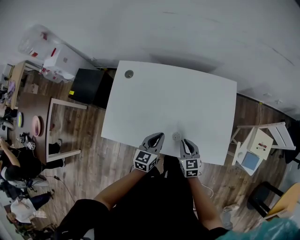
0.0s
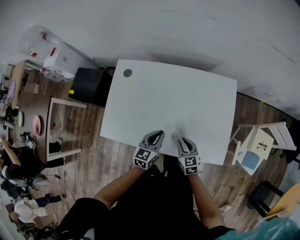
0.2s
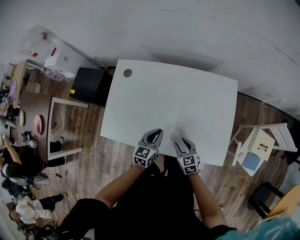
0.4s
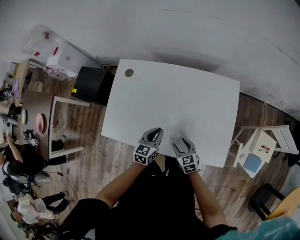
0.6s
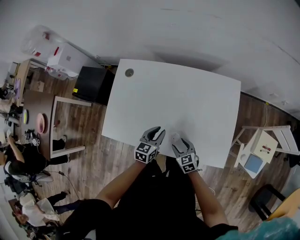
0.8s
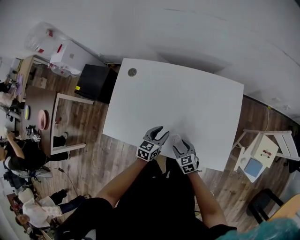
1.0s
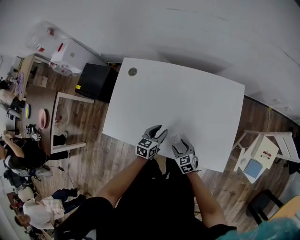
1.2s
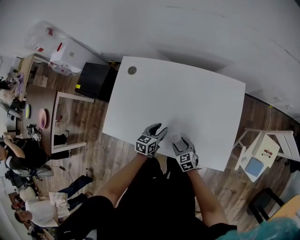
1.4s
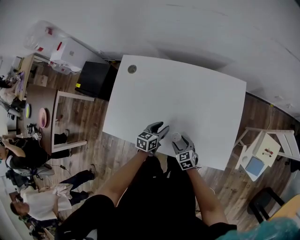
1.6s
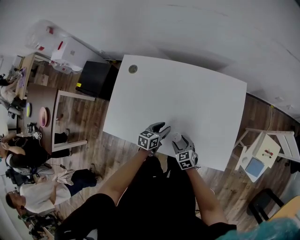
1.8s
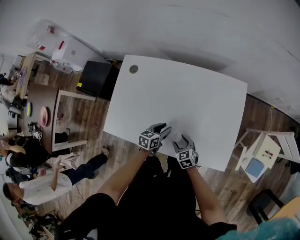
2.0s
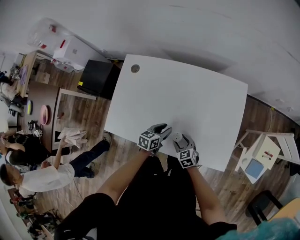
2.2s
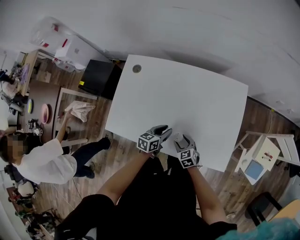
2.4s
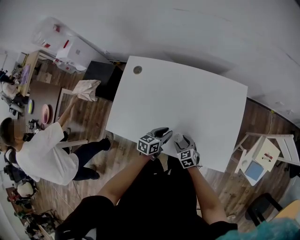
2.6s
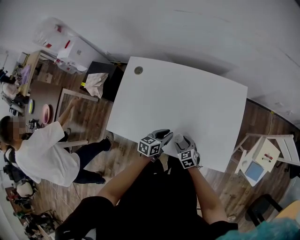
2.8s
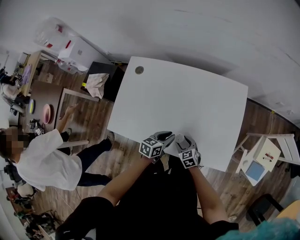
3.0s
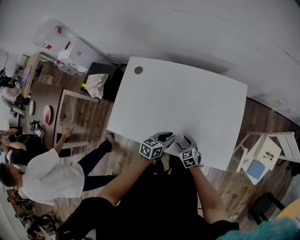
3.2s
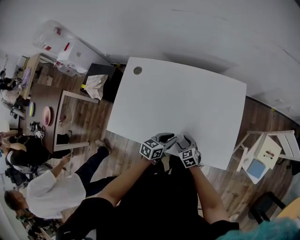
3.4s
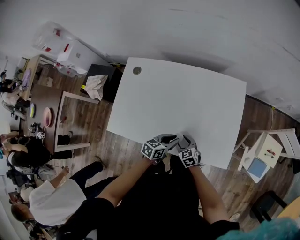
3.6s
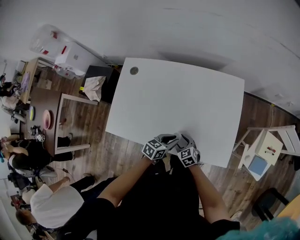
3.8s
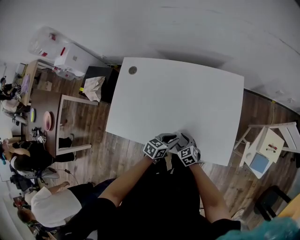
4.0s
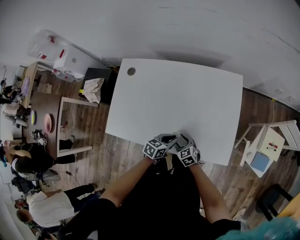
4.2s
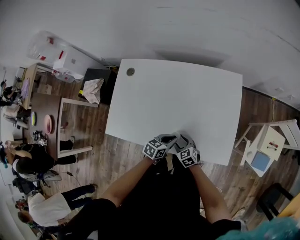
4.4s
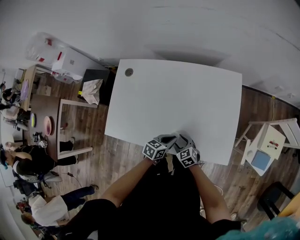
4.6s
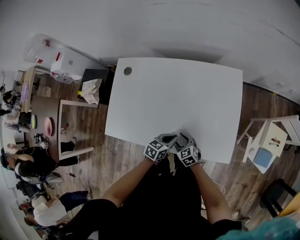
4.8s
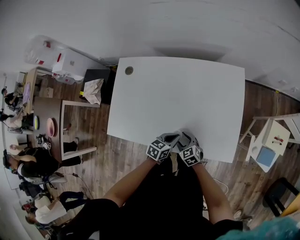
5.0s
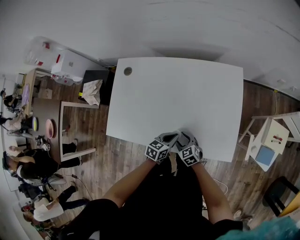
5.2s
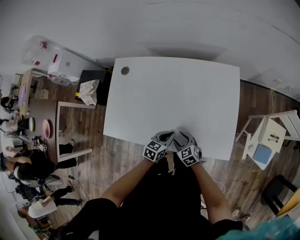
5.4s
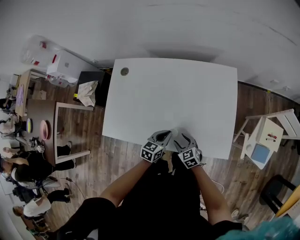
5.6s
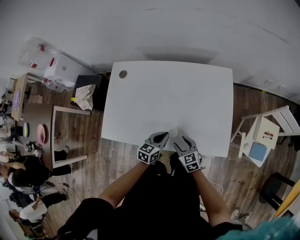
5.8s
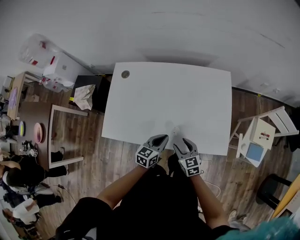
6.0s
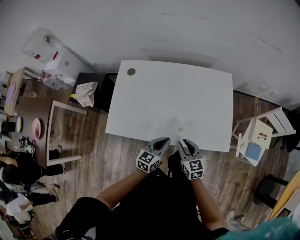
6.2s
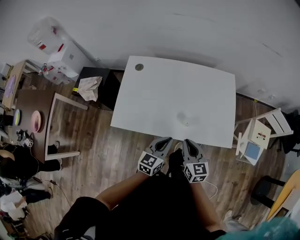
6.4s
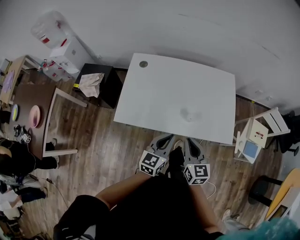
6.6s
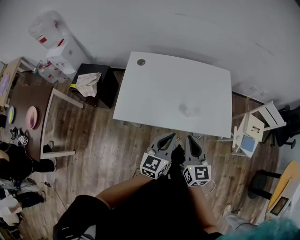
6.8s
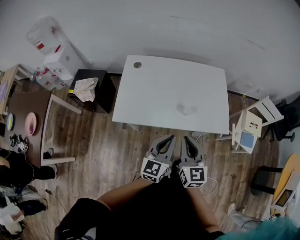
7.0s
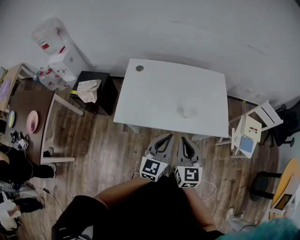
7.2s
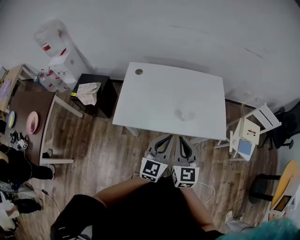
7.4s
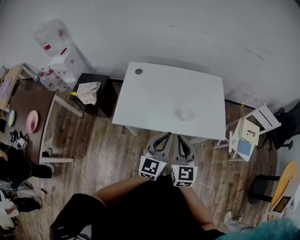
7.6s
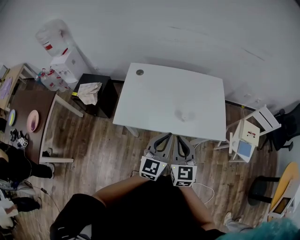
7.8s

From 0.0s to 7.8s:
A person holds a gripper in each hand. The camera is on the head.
From 0.0s to 1.6s: The two grippers go about 10 cm downward. The right gripper swivels roughly 20 degrees, and opens; the left gripper opens its fingers.
From 1.6s to 3.2s: The left gripper heads backward, covering some 5 cm.
From 3.2s to 4.6s: The left gripper moves about 5 cm.
From 4.6s to 6.2s: The left gripper is displaced upward, to the left and backward by approximately 15 cm, and swivels approximately 20 degrees, while the right gripper heads upward, covering about 15 cm, rotates roughly 30 degrees, and closes.
From 6.2s to 7.8s: The right gripper travels upward, backward and to the left by roughly 25 cm, turns by approximately 20 degrees, and closes up. Meanwhile the left gripper shifts some 25 cm upward and backward, and changes its angle by approximately 30 degrees.

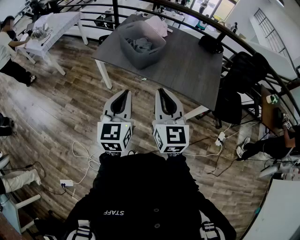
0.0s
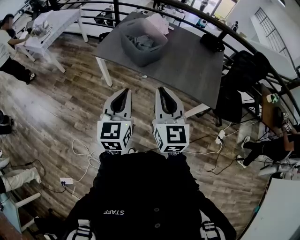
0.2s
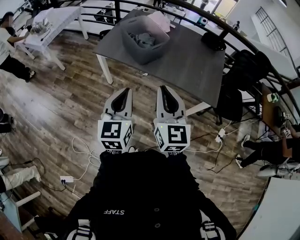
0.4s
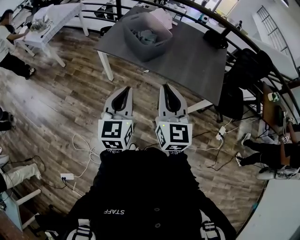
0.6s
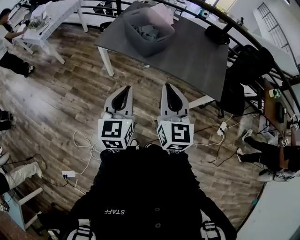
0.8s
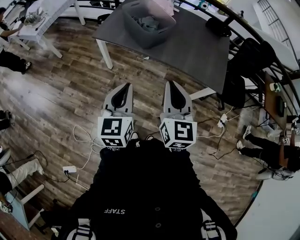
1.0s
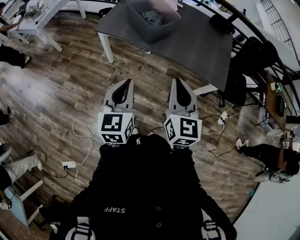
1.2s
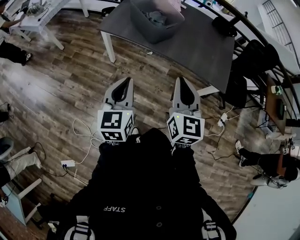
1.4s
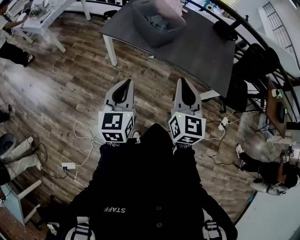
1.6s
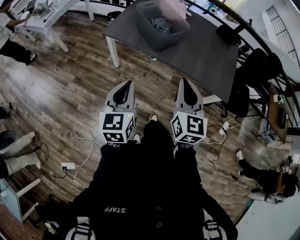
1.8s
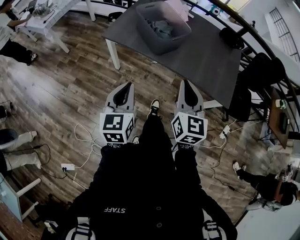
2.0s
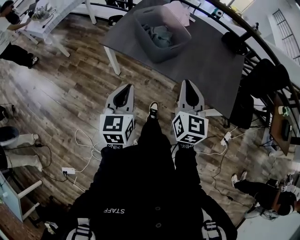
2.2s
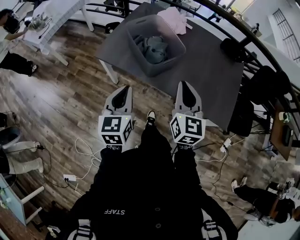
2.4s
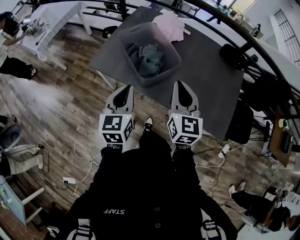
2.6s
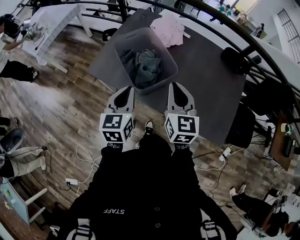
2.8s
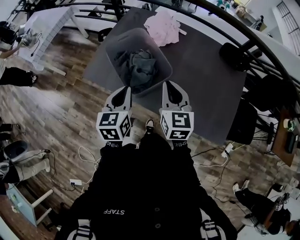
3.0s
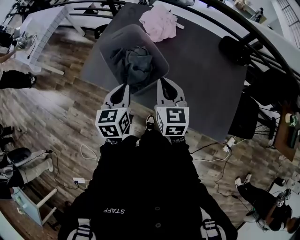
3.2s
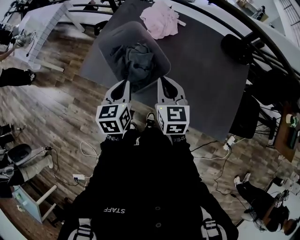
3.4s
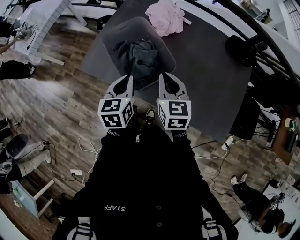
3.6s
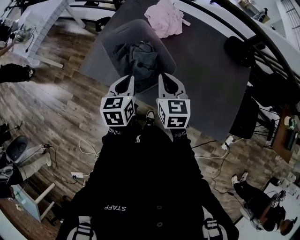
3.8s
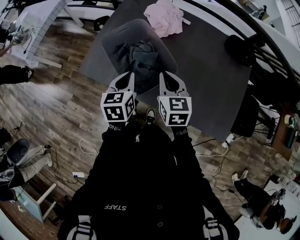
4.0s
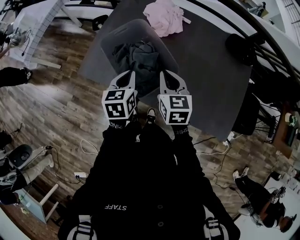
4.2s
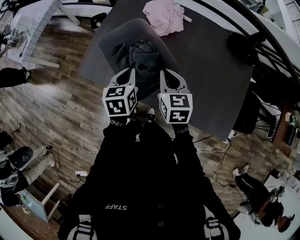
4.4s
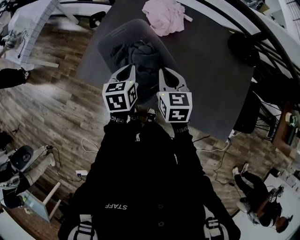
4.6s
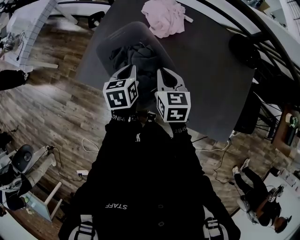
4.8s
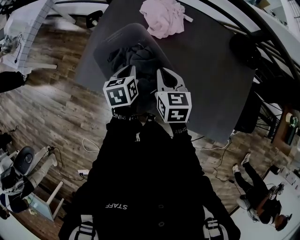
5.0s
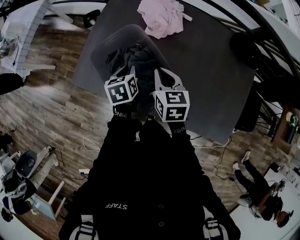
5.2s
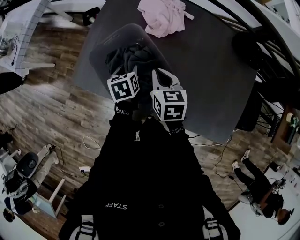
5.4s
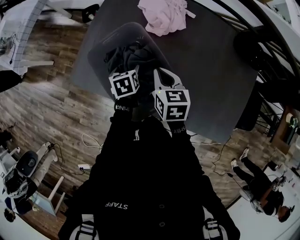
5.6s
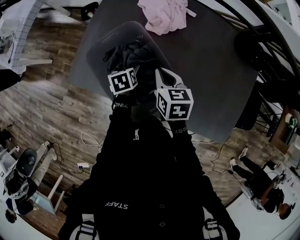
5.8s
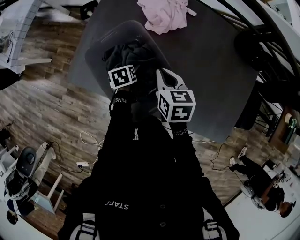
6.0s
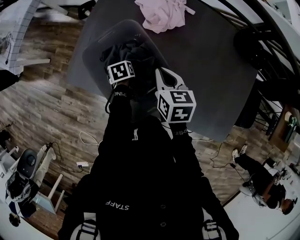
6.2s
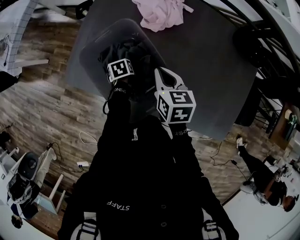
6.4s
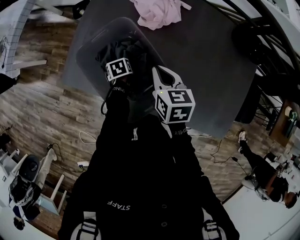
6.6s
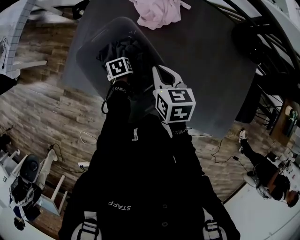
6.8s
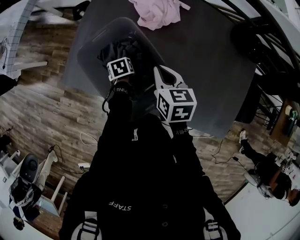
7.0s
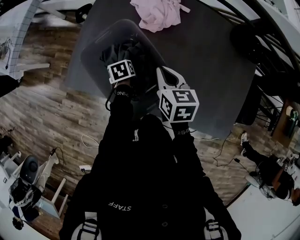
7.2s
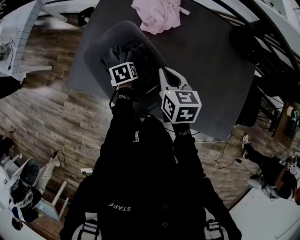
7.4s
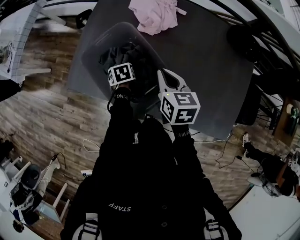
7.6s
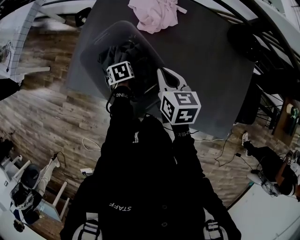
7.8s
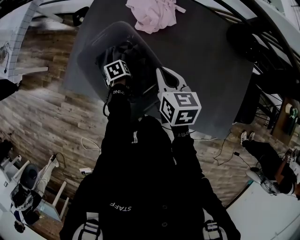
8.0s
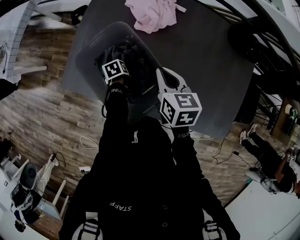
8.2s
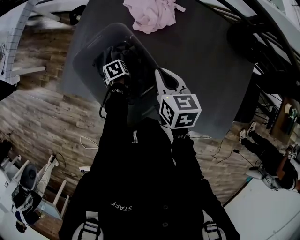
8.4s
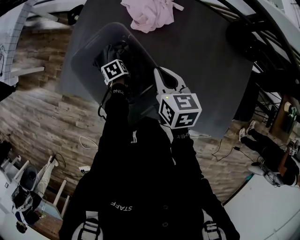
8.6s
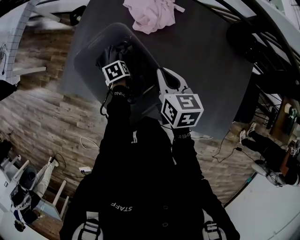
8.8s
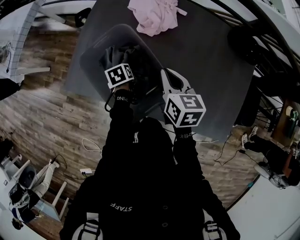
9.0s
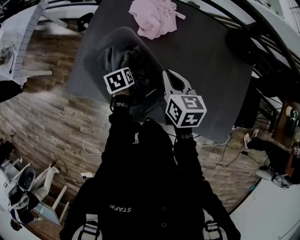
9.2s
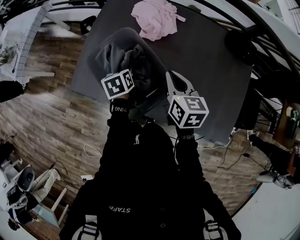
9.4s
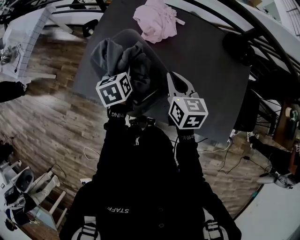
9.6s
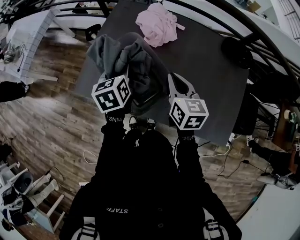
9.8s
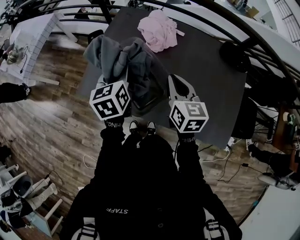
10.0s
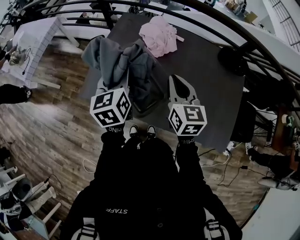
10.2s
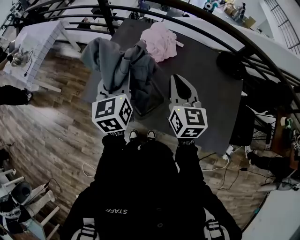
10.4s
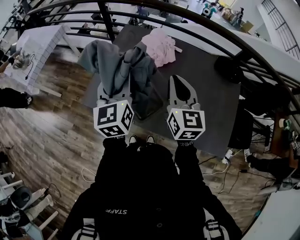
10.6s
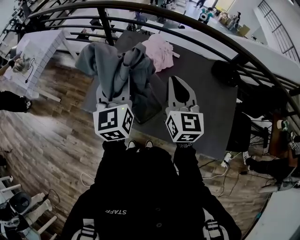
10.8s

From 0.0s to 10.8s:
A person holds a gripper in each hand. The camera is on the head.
From 0.0s to 1.6s: The left gripper is displaced to the left and downward by about 10 cm. Meanwhile the right gripper shifts approximately 5 cm downward.
From 1.6s to 3.0s: Both grippers are carried forward, roughly 40 cm.
From 3.0s to 4.6s: The two grippers go about 15 cm forward and downward.
From 4.6s to 6.2s: The right gripper is displaced forward and downward by roughly 10 cm. The left gripper heads downward, covering approximately 25 cm, angles its fingers downward, by some 30 degrees, and opens.
From 6.2s to 7.8s: The left gripper closes, then opens again.
From 7.8s to 9.2s: The left gripper travels upward by roughly 5 cm, and closes up.
From 9.2s to 10.8s: The right gripper heads upward, covering approximately 20 cm, and swivels some 40 degrees, while the left gripper travels upward by roughly 40 cm, and angles its fingers upward, by about 60 degrees.

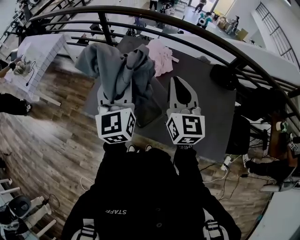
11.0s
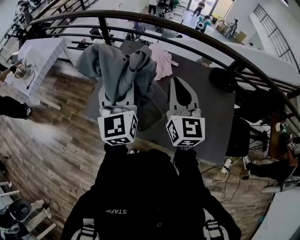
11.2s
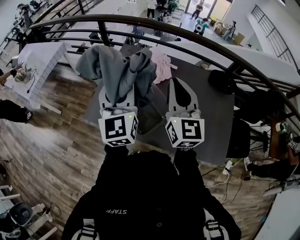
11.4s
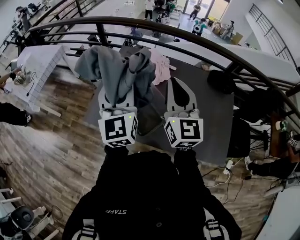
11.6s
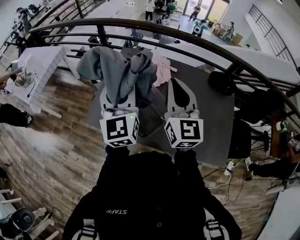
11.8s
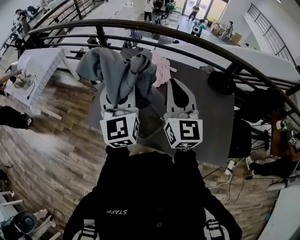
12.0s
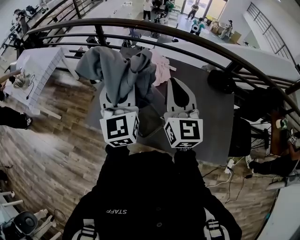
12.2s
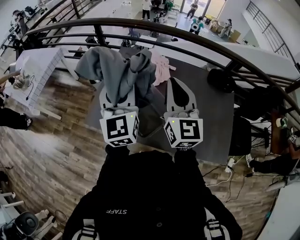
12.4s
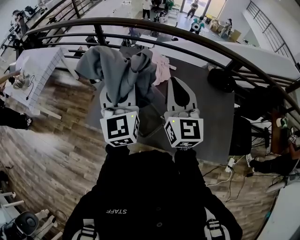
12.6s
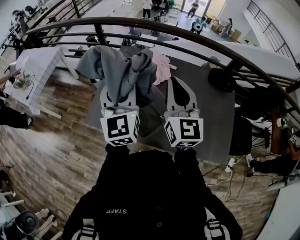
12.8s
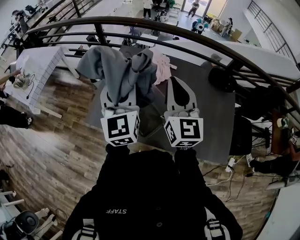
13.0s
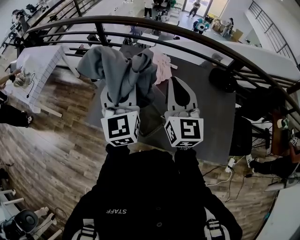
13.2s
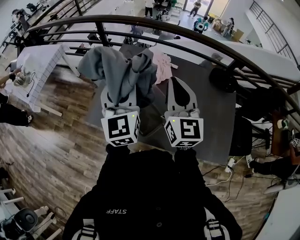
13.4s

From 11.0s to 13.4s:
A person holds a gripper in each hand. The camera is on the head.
From 11.0s to 13.4s: There are only small adjustments of the grippers.

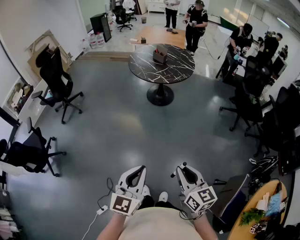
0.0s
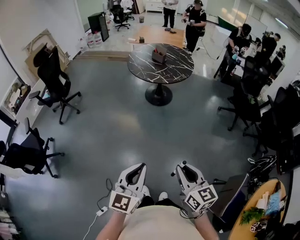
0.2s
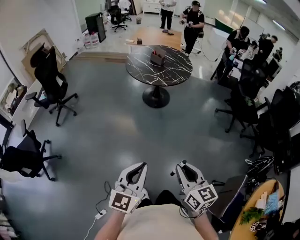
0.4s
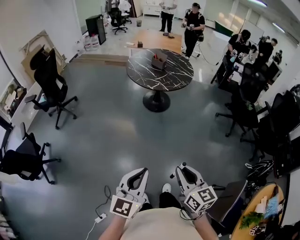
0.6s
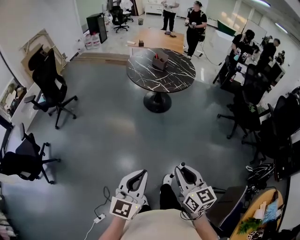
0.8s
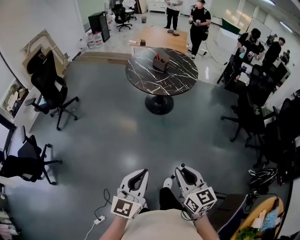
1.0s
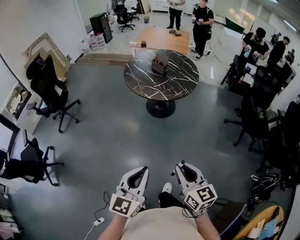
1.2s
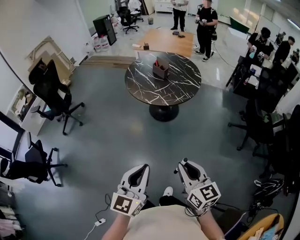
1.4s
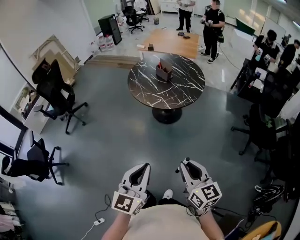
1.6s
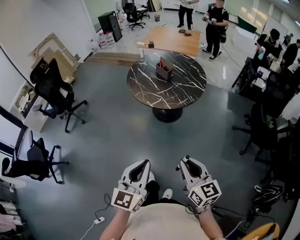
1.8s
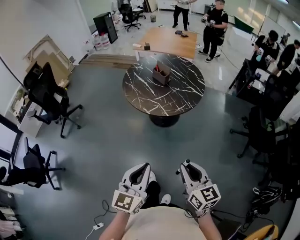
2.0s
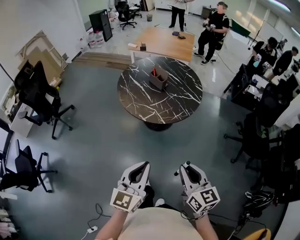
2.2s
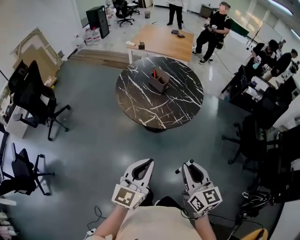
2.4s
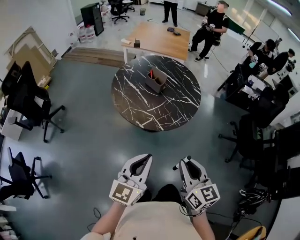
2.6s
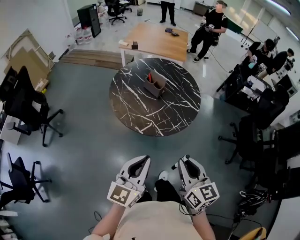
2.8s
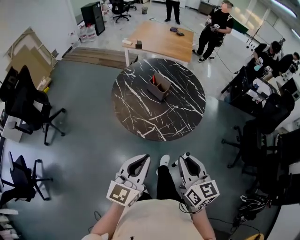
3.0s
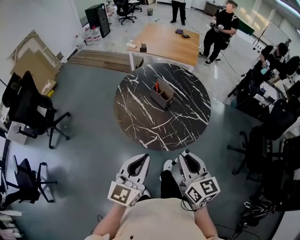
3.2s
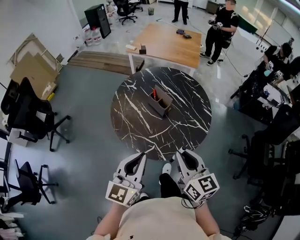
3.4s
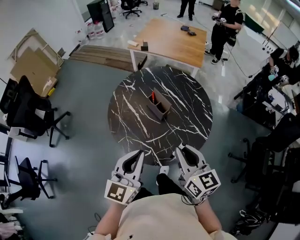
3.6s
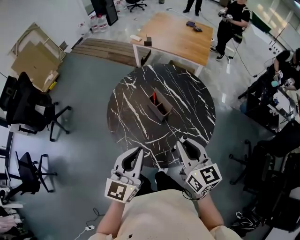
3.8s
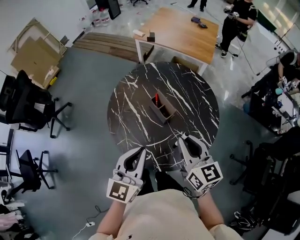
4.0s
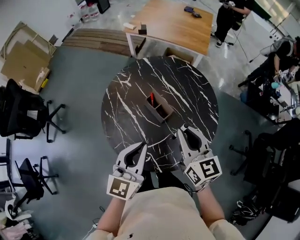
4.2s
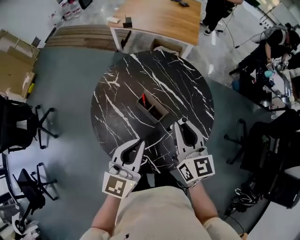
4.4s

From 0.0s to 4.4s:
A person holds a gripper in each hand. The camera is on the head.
From 0.0s to 1.4s: Both grippers move forward, some 30 cm.
From 1.4s to 3.0s: Both grippers are carried forward, some 40 cm.
From 3.0s to 4.4s: The two grippers travel together, forward, approximately 40 cm.
